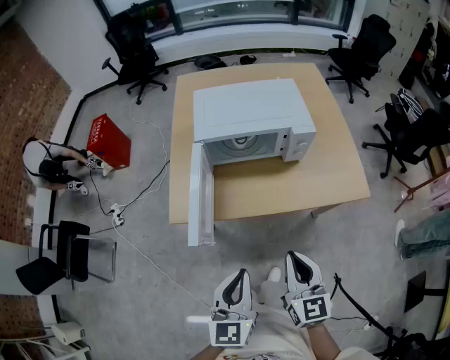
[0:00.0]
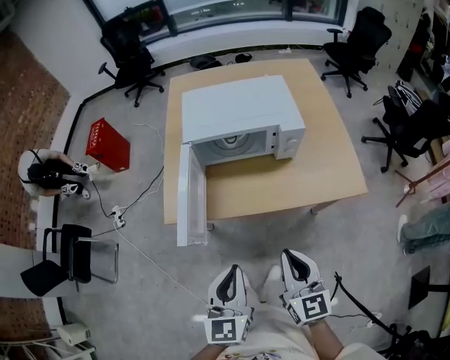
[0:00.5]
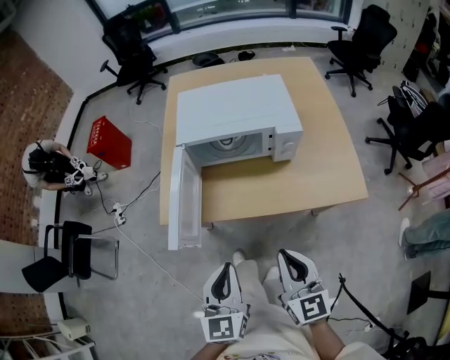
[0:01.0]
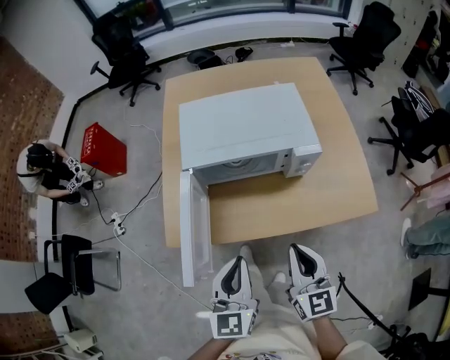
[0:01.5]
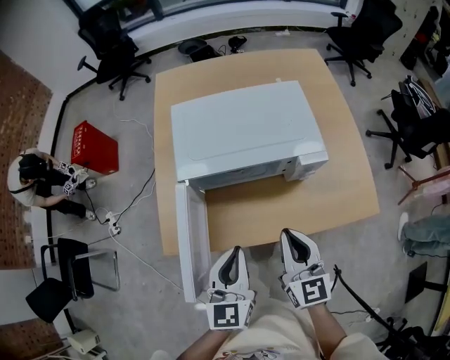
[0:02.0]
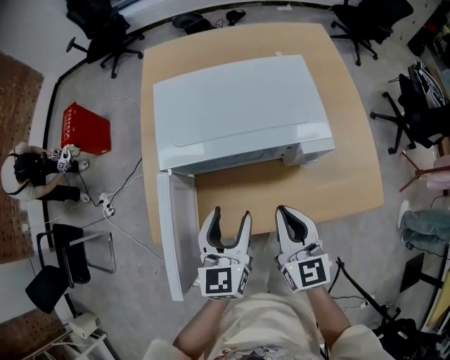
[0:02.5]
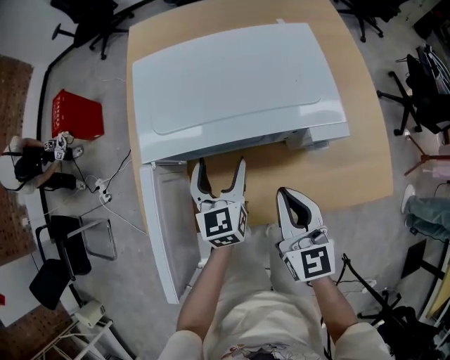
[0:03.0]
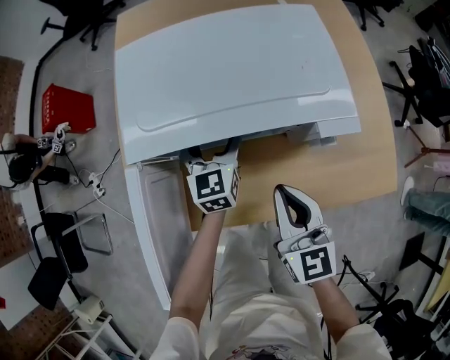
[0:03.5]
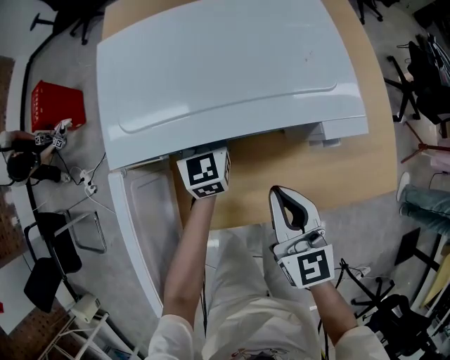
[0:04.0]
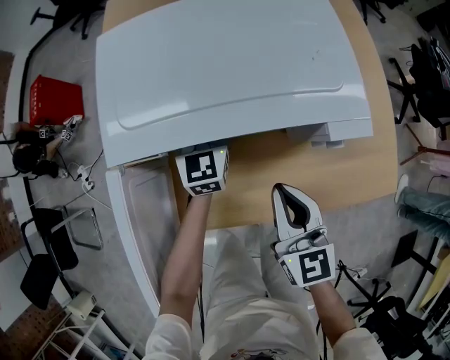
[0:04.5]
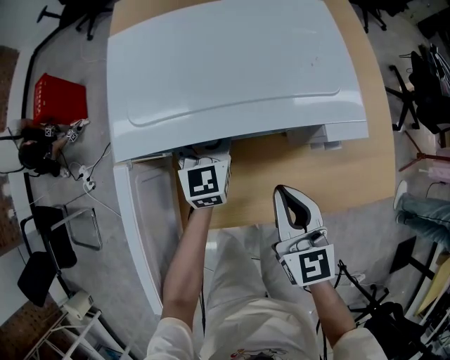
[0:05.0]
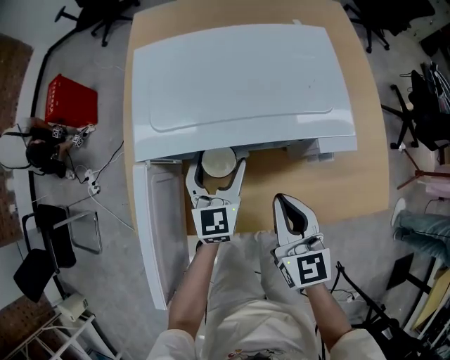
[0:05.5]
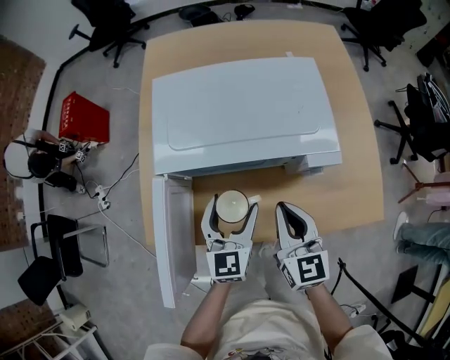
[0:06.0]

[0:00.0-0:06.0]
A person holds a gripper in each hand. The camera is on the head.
0:00.0 to 0:02.0: The two grippers go roughly 25 cm forward.
0:02.0 to 0:04.0: The right gripper shifts about 15 cm downward and forward; the left gripper goes about 35 cm forward and downward, and opens its fingers.
0:04.0 to 0:06.0: The left gripper moves backward and upward, approximately 20 cm. The right gripper shifts roughly 5 cm upward.

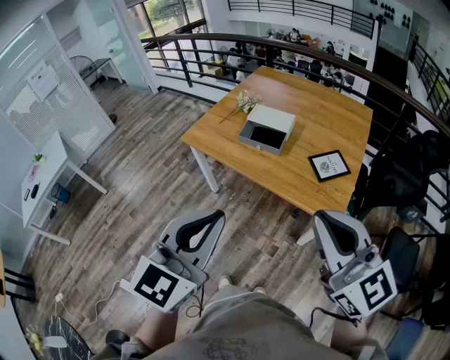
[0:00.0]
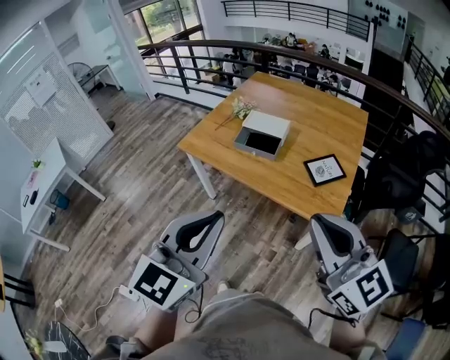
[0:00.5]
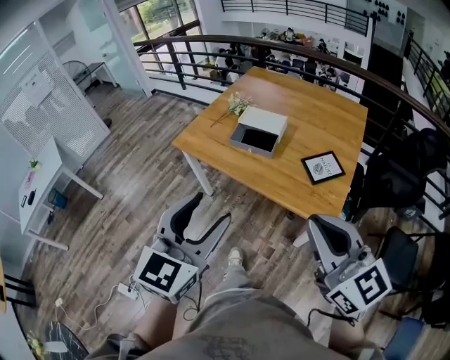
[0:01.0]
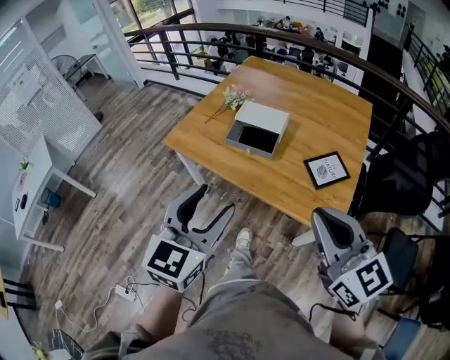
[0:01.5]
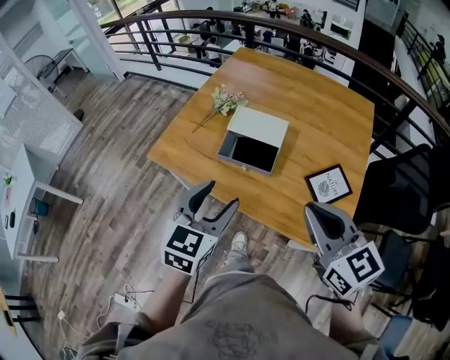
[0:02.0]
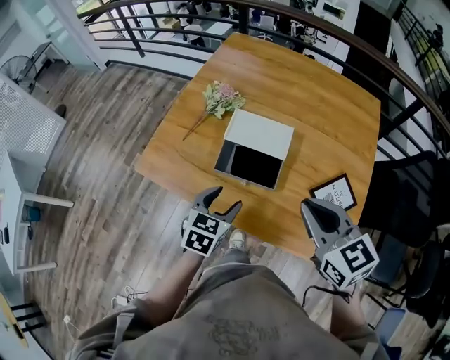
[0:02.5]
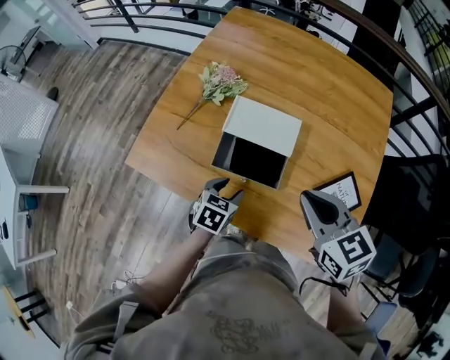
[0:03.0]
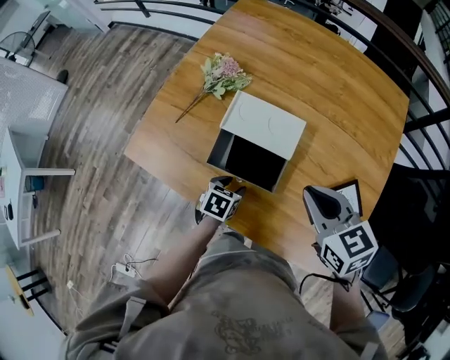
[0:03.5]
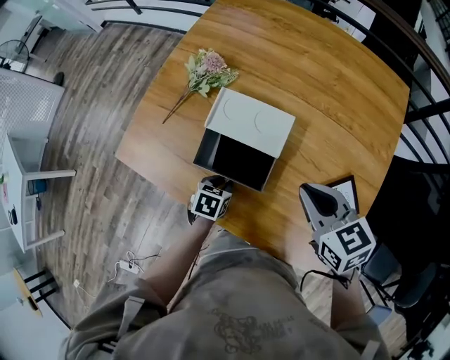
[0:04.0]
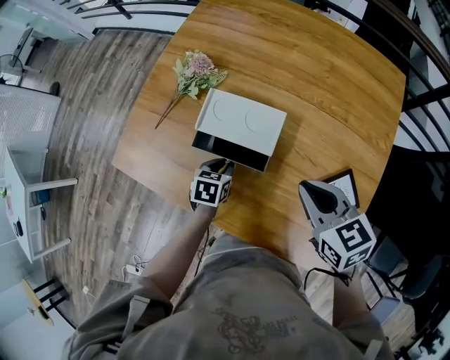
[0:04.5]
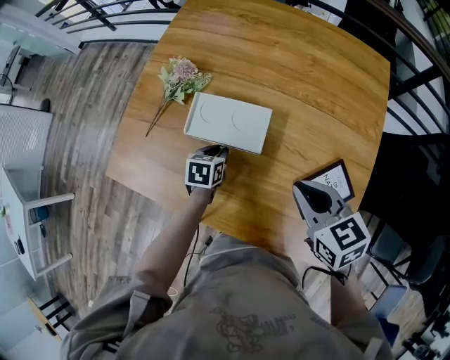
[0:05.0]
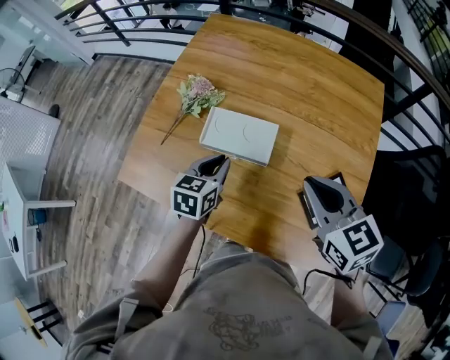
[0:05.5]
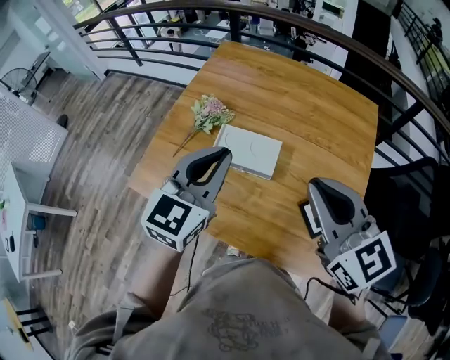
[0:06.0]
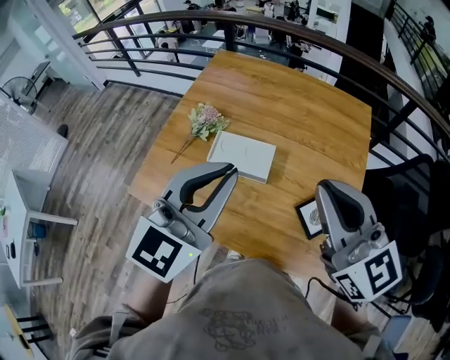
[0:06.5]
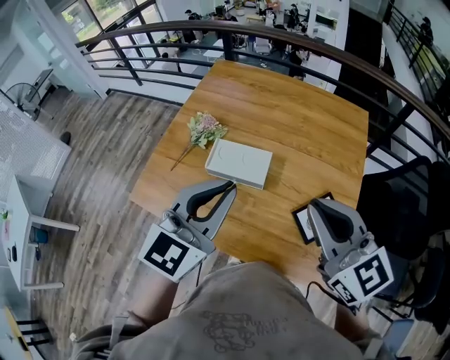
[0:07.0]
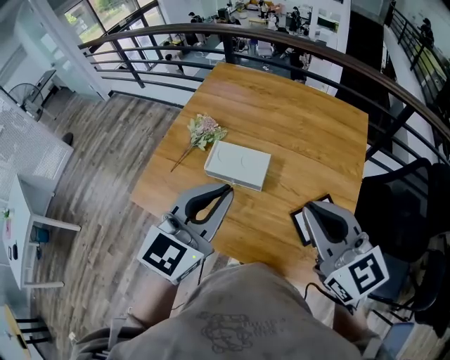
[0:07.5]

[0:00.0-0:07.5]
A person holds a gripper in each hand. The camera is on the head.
0:00.0 to 0:02.0: The two grippers go some 30 cm forward and downward. The right gripper rotates about 20 degrees, while the left gripper opens up.
0:02.0 to 0:04.0: The right gripper goes some 25 cm forward and downward, and turns by some 20 degrees. The left gripper shifts approximately 35 cm downward and forward, tilts its fingers roughly 40 degrees downward, and closes.
0:04.0 to 0:05.5: The right gripper moves upward, about 10 cm. The left gripper goes approximately 20 cm upward and forward, and changes its angle by some 30 degrees.
0:05.5 to 0:07.5: The right gripper moves upward and backward, about 15 cm. Meanwhile the left gripper heads upward and backward, covering about 30 cm, and turns by about 40 degrees.

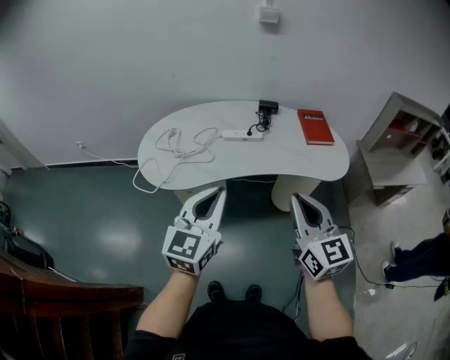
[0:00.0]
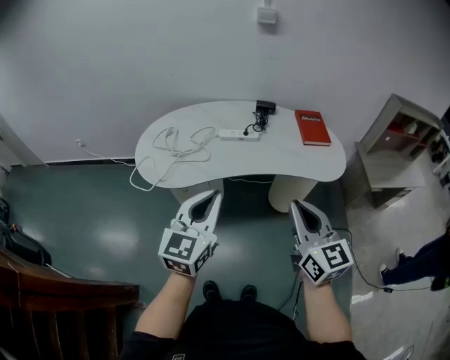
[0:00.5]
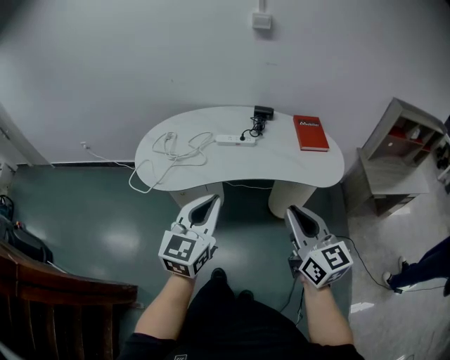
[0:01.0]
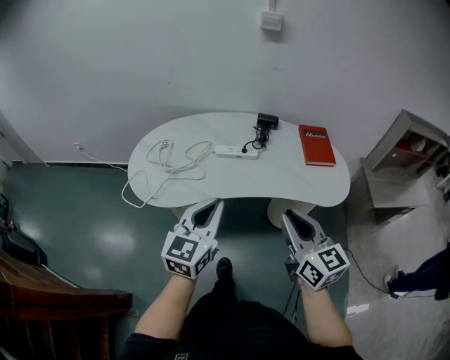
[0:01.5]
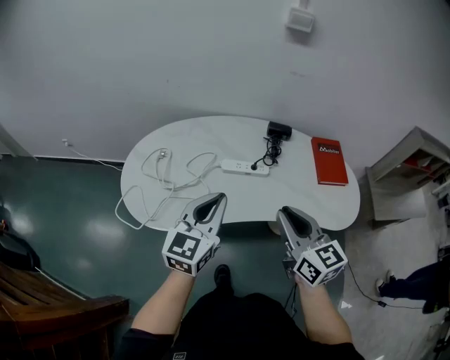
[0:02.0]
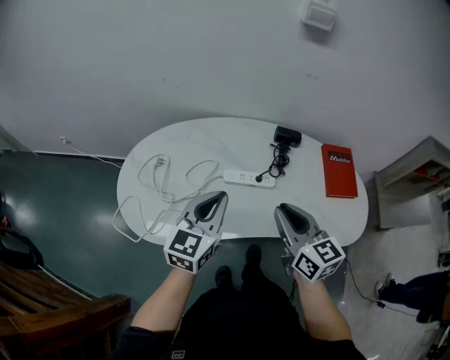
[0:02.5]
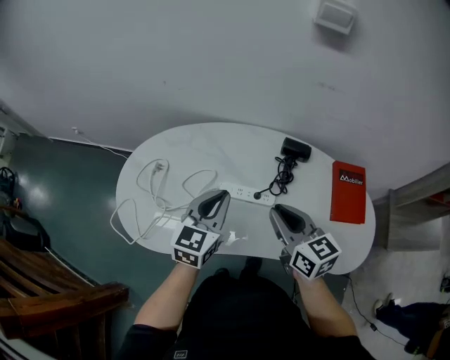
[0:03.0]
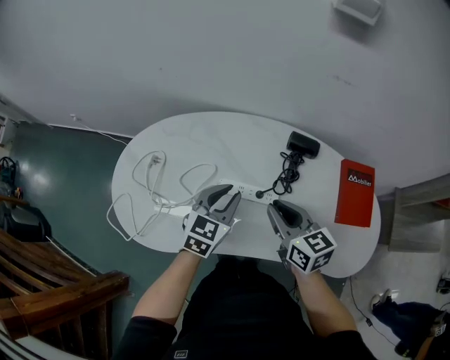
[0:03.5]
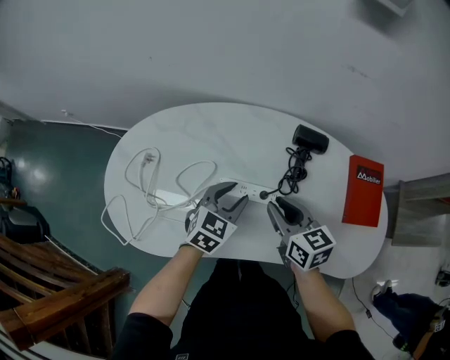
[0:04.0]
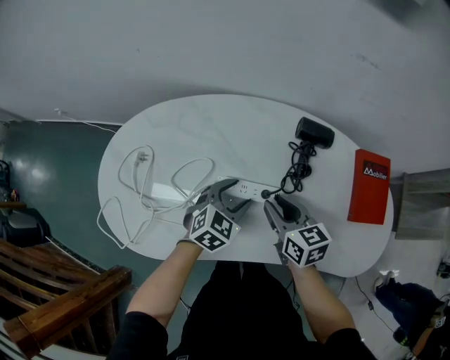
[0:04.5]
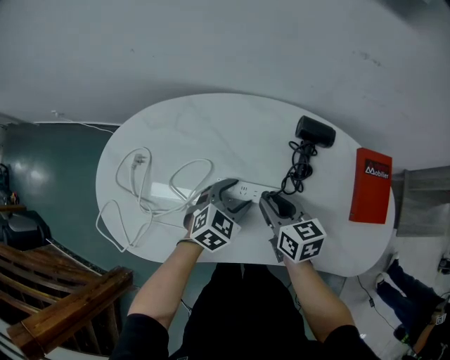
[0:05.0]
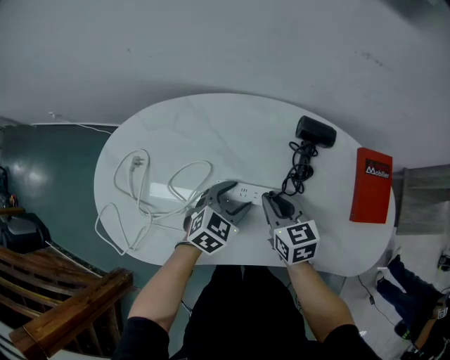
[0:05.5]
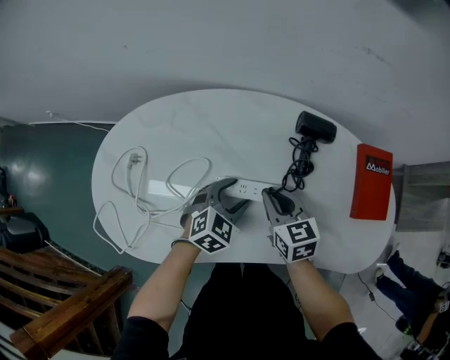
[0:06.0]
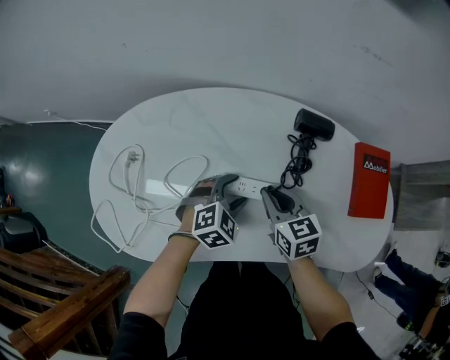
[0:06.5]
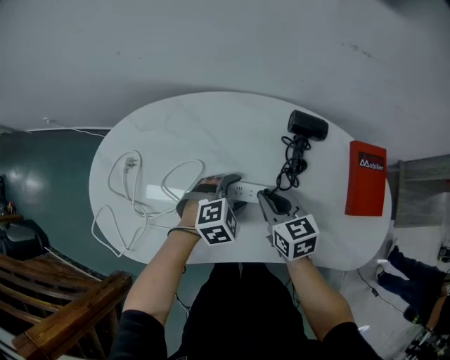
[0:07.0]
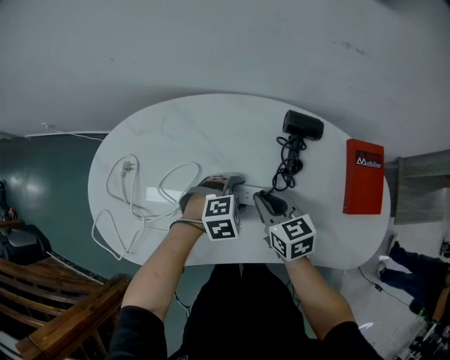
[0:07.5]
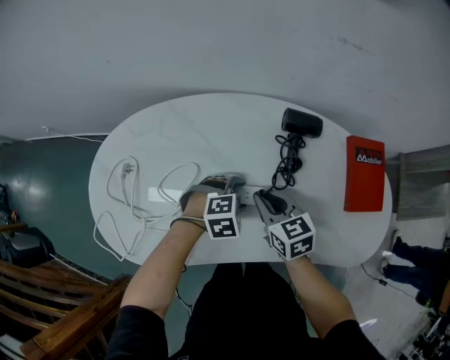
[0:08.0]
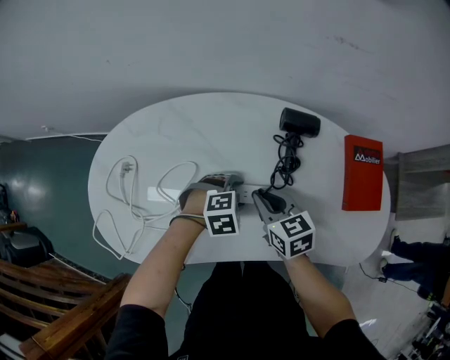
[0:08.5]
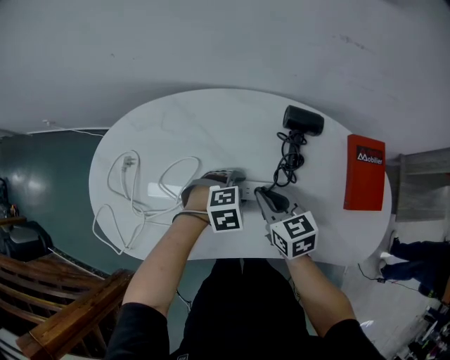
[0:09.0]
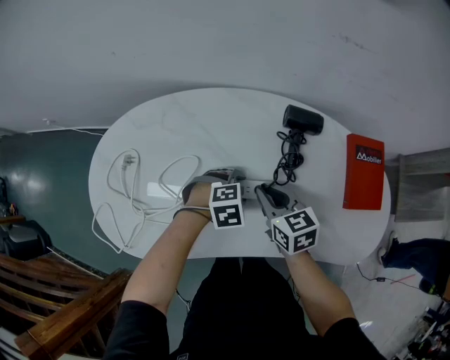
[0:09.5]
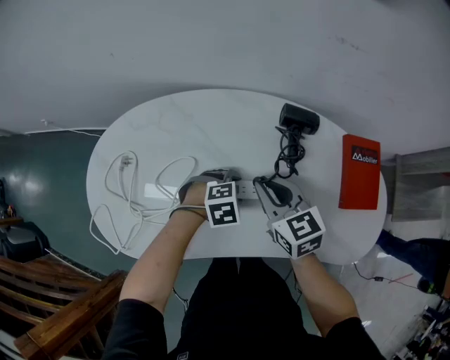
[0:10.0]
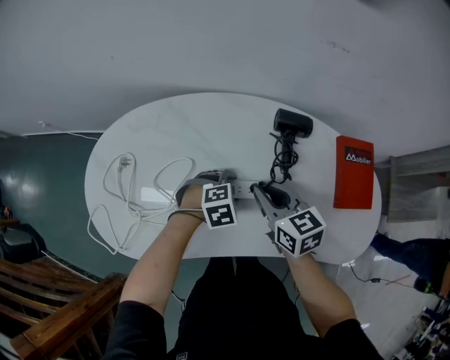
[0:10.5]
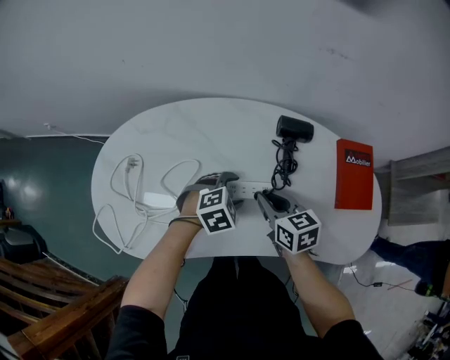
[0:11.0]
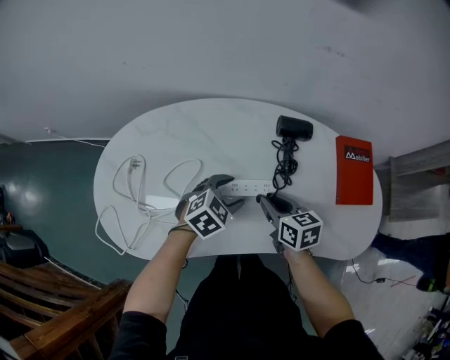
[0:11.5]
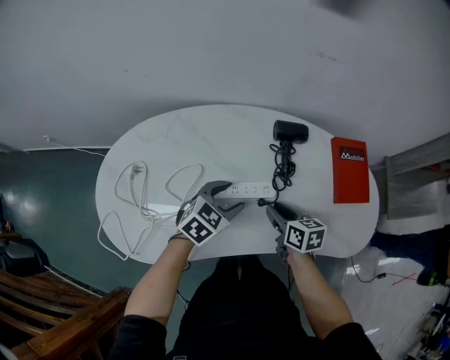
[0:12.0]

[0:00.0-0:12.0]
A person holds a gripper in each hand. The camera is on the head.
0:00.0 to 0:02.0: Both grippers move forward, roughly 25 cm.
0:02.0 to 0:04.0: The grippers both shift forward and downward by about 30 cm. The right gripper swivels roughly 20 degrees. The left gripper swivels approximately 30 degrees, and opens its fingers.
0:04.0 to 0:06.0: The two grippers go approximately 5 cm downward.
0:06.0 to 0:08.0: The left gripper ends up about 5 cm from where it was, and rotates approximately 40 degrees.
0:08.0 to 0:10.0: The right gripper shifts about 5 cm upward.
0:10.0 to 0:12.0: The right gripper shifts some 10 cm downward, to the right and backward, and changes its angle by approximately 30 degrees. Meanwhile the left gripper heads upward, covering some 10 cm, and changes its angle by some 40 degrees.

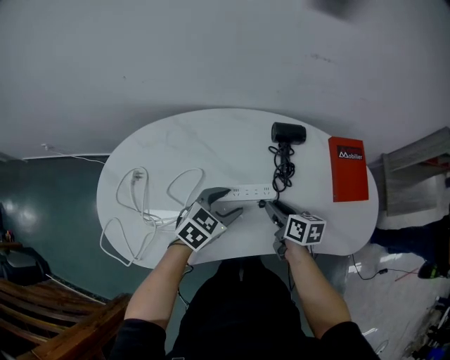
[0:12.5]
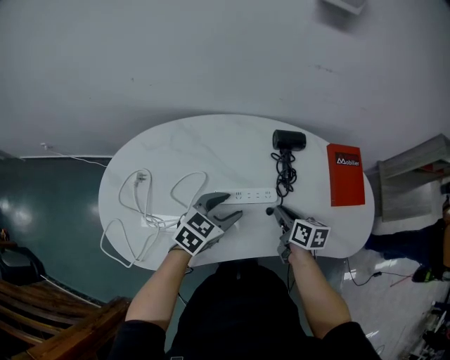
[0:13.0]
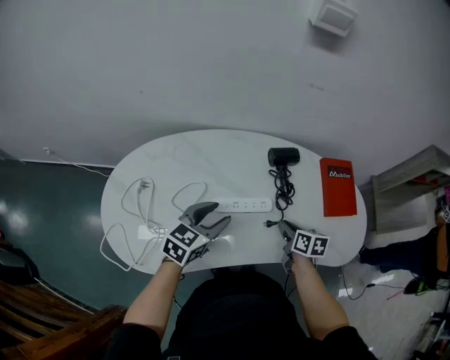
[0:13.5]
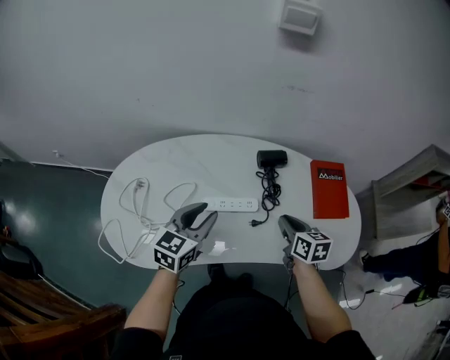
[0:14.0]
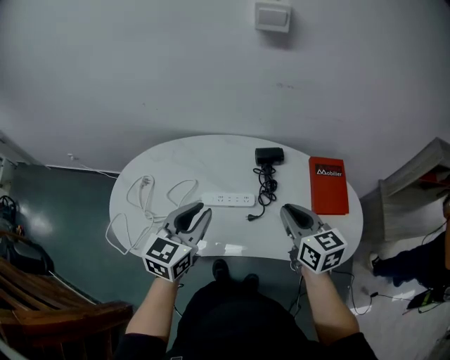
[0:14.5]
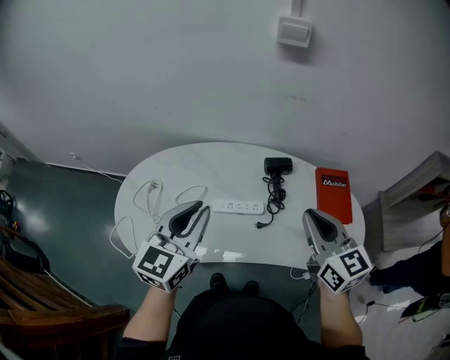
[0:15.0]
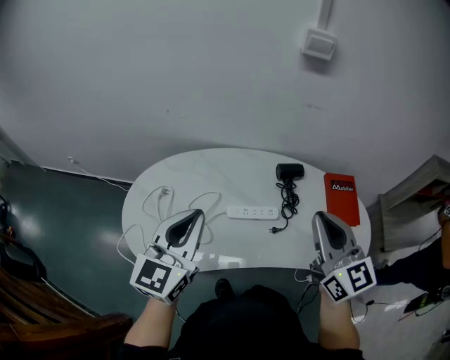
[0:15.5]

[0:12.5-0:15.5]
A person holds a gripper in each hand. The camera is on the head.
0:12.5 to 0:14.0: The left gripper goes about 10 cm upward, turns by approximately 30 degrees, and closes its fingers, while the right gripper travels to the right and upward by about 10 cm.
0:14.0 to 0:15.5: The right gripper heads upward, covering some 25 cm, and tilts its fingers some 30 degrees upward. Meanwhile the left gripper travels upward and to the left by about 20 cm, turns by roughly 20 degrees, and closes its fingers.
